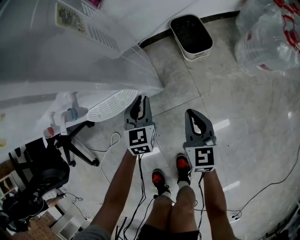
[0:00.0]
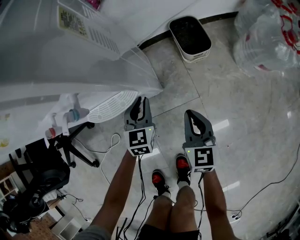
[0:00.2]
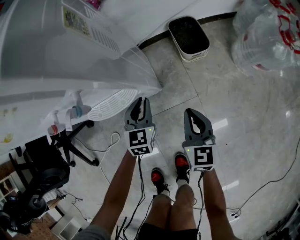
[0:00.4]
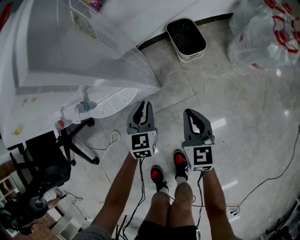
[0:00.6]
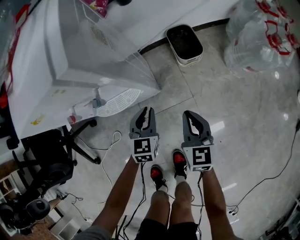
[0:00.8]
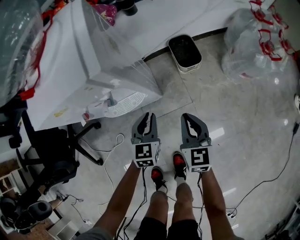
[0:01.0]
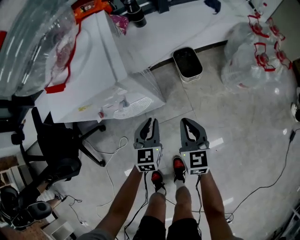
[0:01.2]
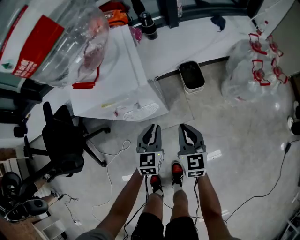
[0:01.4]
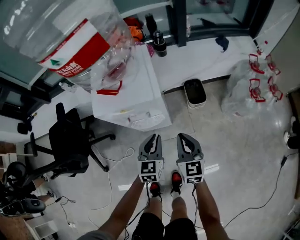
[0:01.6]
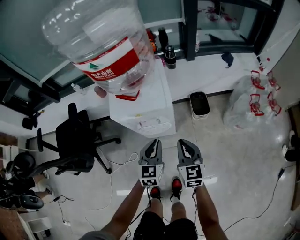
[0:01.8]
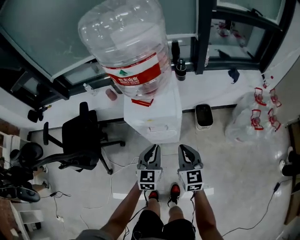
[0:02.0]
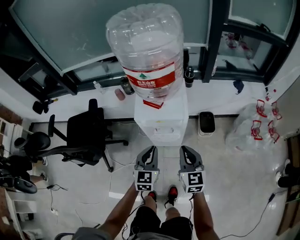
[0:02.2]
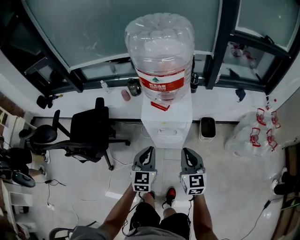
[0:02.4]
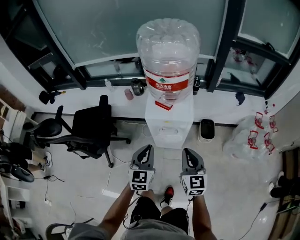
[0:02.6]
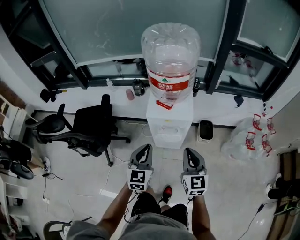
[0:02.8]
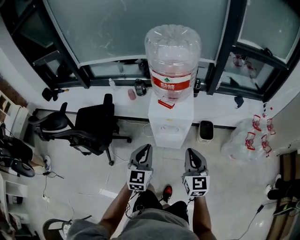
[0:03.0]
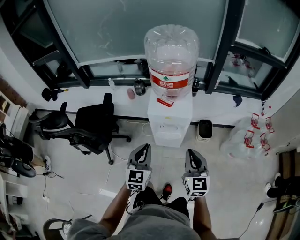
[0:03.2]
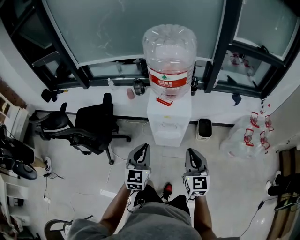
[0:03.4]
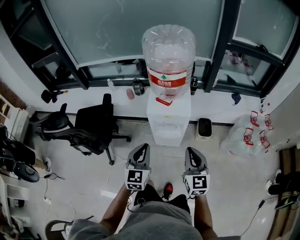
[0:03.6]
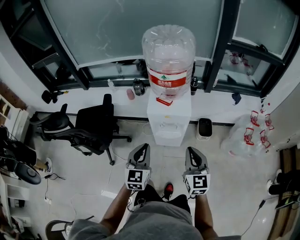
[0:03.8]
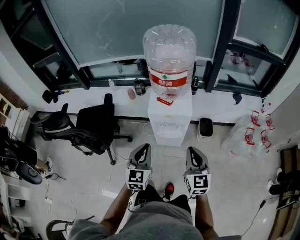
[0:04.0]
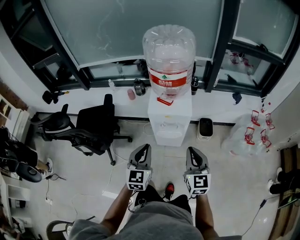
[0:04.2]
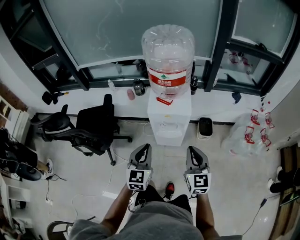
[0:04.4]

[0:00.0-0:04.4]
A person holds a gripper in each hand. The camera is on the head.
0:00.0 to 0:01.4: The two grippers go about 25 cm upward.
0:01.4 to 0:03.0: The right gripper heads upward, covering roughly 35 cm, and changes its angle by approximately 20 degrees. The left gripper shifts approximately 40 cm upward and to the left, and turns by some 20 degrees.
0:03.0 to 0:04.4: The grippers make only small movements.

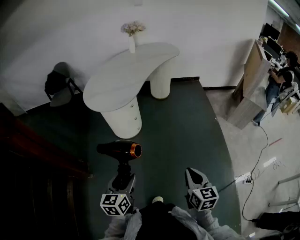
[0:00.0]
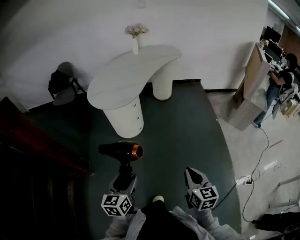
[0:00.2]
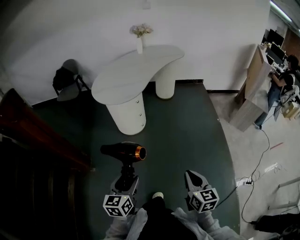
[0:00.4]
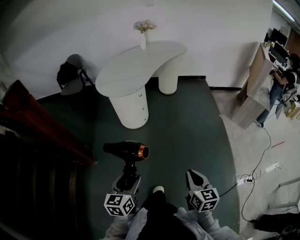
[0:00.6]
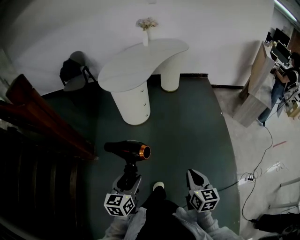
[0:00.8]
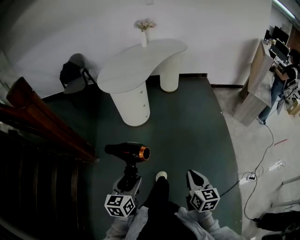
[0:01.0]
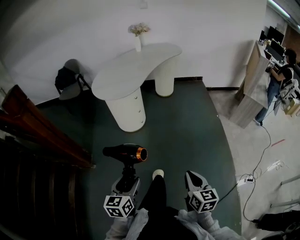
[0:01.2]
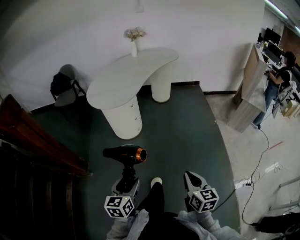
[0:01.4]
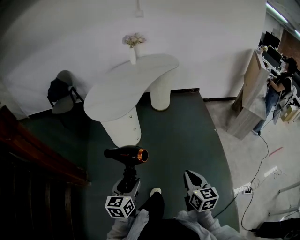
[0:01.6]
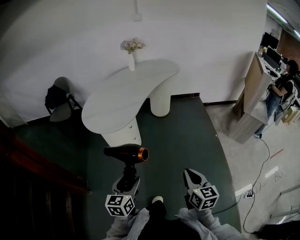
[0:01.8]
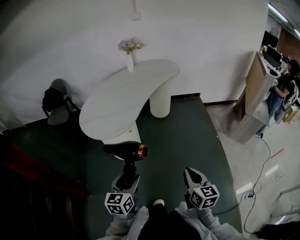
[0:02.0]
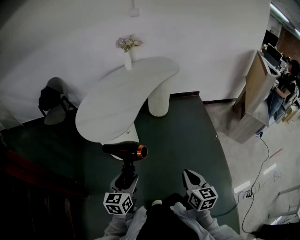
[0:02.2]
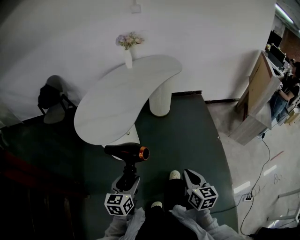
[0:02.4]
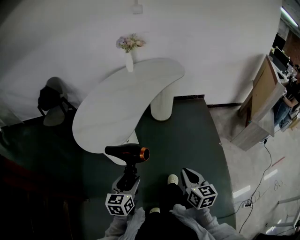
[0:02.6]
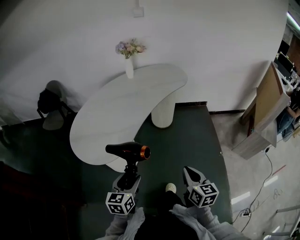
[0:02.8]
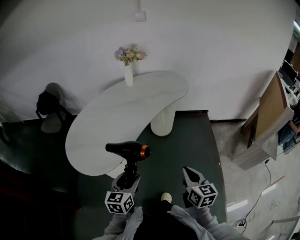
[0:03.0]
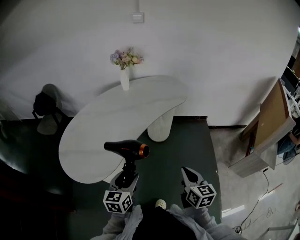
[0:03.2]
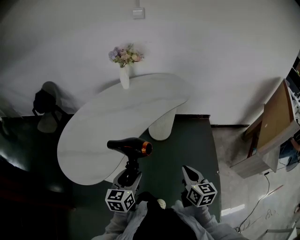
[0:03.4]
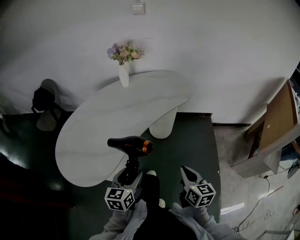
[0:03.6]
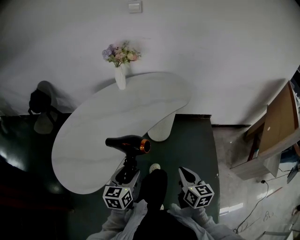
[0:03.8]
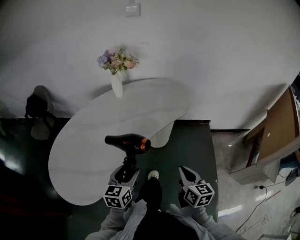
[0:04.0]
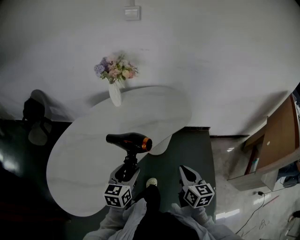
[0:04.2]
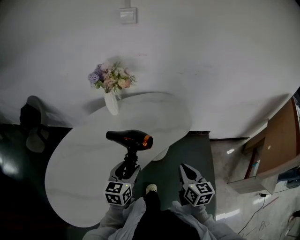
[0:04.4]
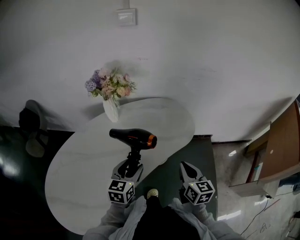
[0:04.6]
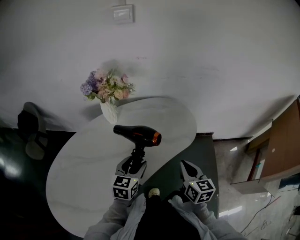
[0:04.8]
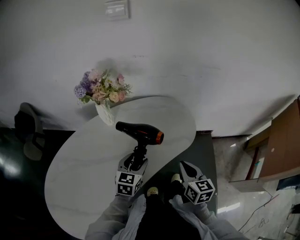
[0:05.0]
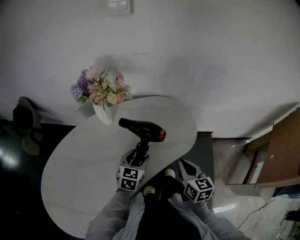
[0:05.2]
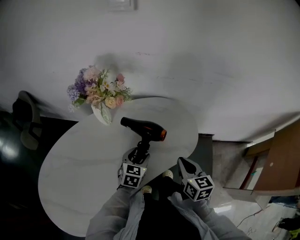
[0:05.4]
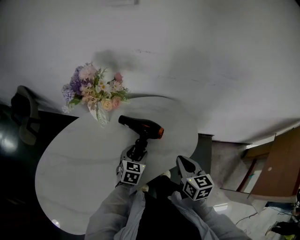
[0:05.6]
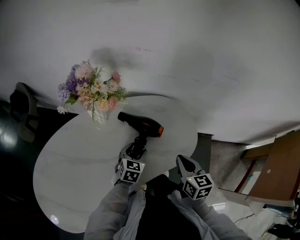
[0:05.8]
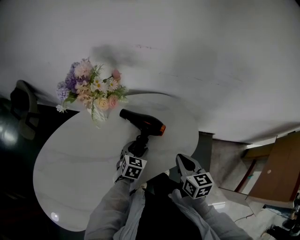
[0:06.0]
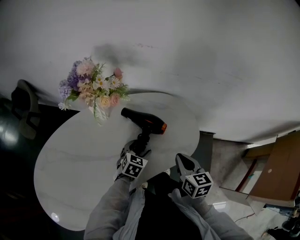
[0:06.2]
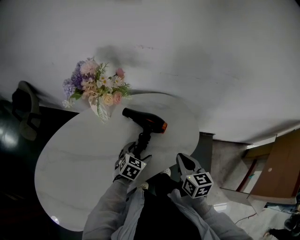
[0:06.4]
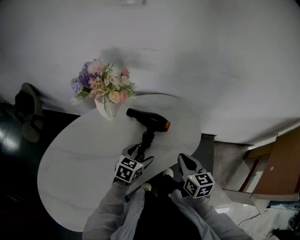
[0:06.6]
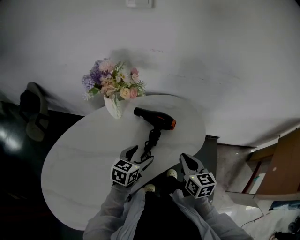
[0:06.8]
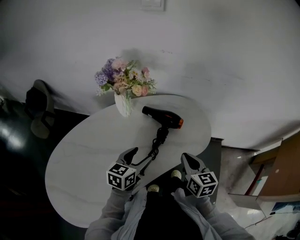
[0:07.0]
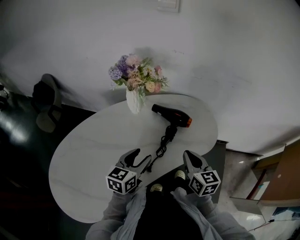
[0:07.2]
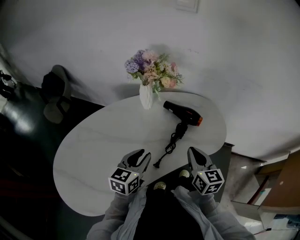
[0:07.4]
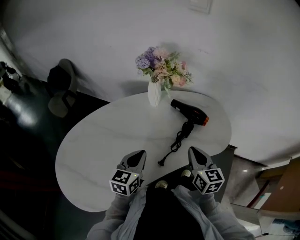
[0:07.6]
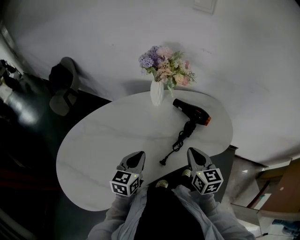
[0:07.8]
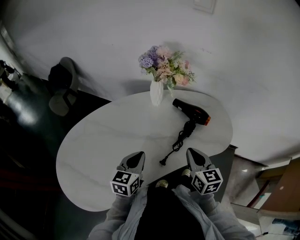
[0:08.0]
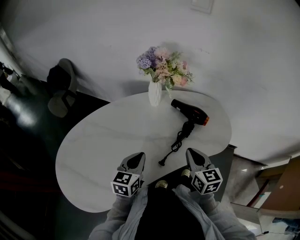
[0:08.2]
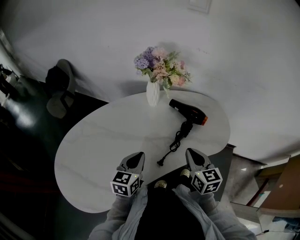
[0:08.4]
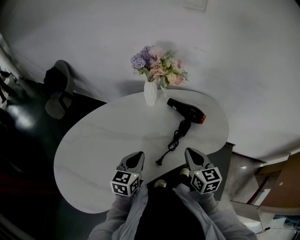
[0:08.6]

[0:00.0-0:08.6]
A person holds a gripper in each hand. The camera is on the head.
0:00.0 to 0:01.4: The two grippers go some 10 cm backward.
0:01.4 to 0:02.8: Both grippers are carried forward, some 50 cm.
0:02.8 to 0:04.4: The two grippers travel together, forward, about 50 cm.
0:04.4 to 0:05.8: The left gripper travels forward and downward by roughly 30 cm, and rotates approximately 20 degrees. The right gripper moves forward, approximately 25 cm.
0:05.8 to 0:07.2: The right gripper goes about 10 cm to the left and backward, while the left gripper is displaced backward, upward and to the left by roughly 20 cm, rotates roughly 30 degrees, and opens and closes again.
0:07.2 to 0:08.6: Both grippers travel together to the left, about 5 cm. The left gripper closes its fingers.

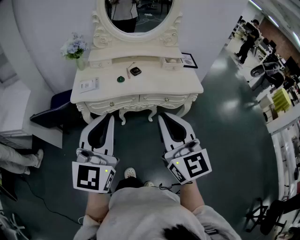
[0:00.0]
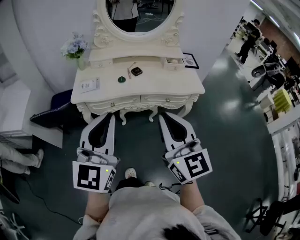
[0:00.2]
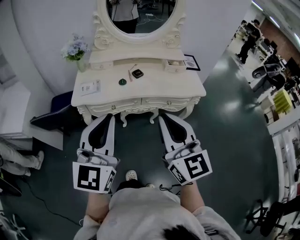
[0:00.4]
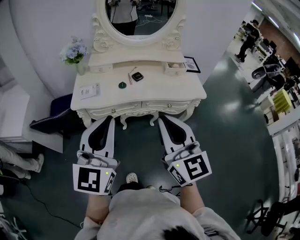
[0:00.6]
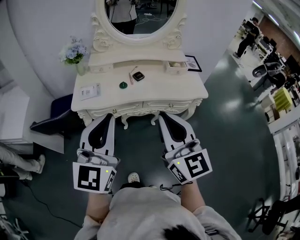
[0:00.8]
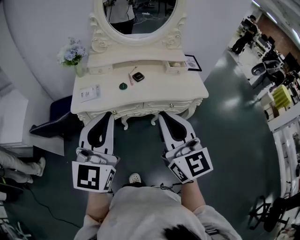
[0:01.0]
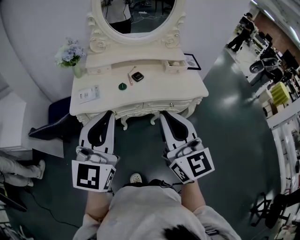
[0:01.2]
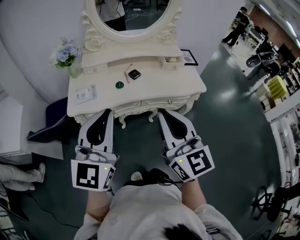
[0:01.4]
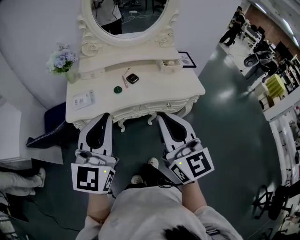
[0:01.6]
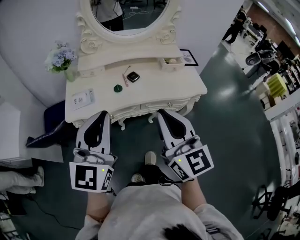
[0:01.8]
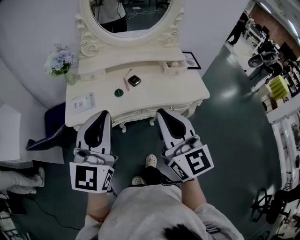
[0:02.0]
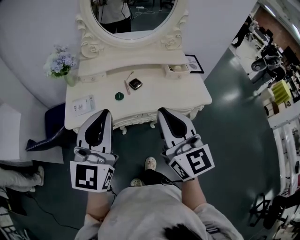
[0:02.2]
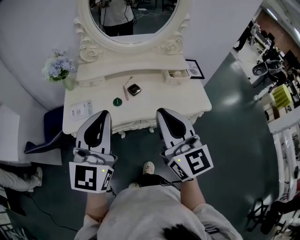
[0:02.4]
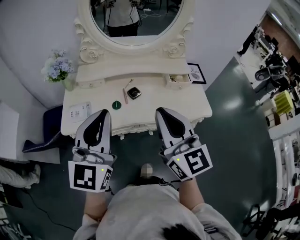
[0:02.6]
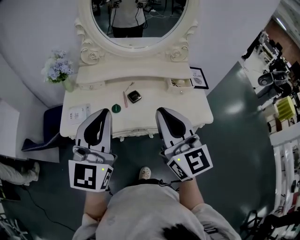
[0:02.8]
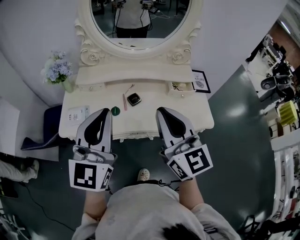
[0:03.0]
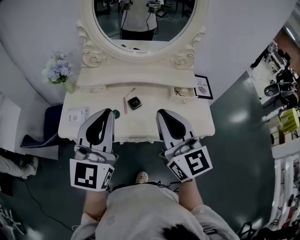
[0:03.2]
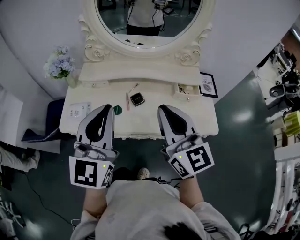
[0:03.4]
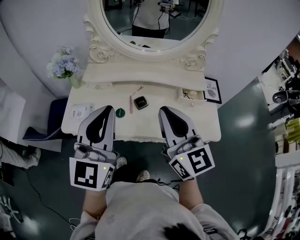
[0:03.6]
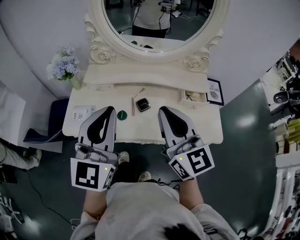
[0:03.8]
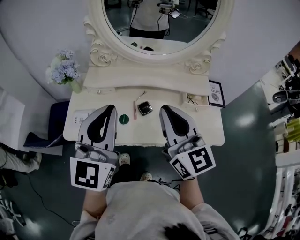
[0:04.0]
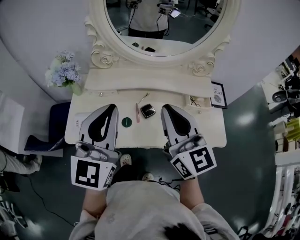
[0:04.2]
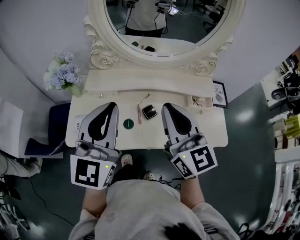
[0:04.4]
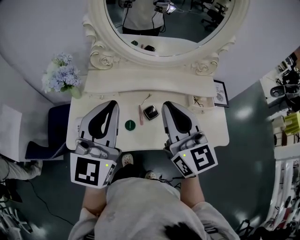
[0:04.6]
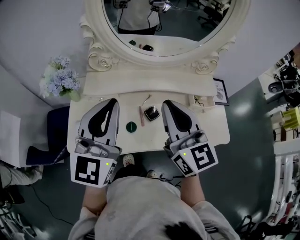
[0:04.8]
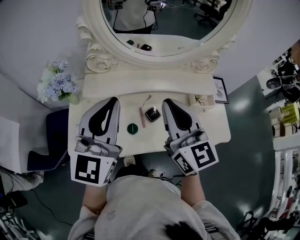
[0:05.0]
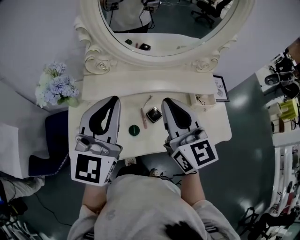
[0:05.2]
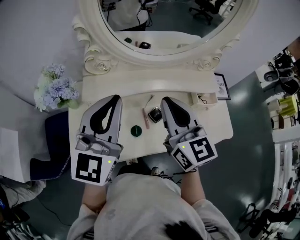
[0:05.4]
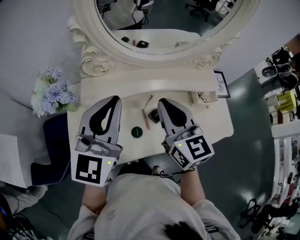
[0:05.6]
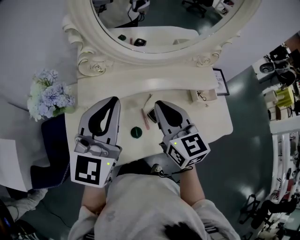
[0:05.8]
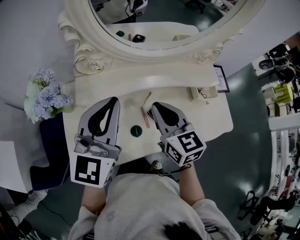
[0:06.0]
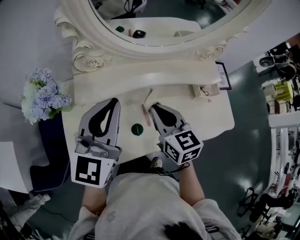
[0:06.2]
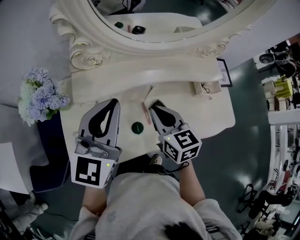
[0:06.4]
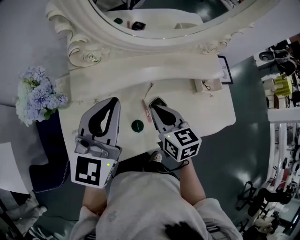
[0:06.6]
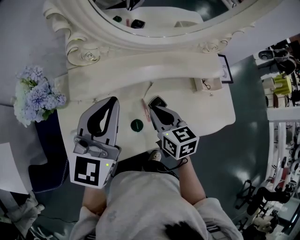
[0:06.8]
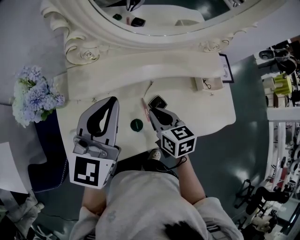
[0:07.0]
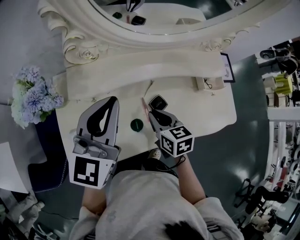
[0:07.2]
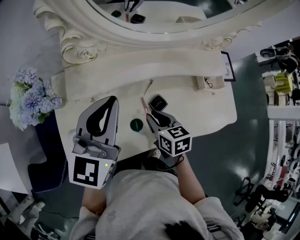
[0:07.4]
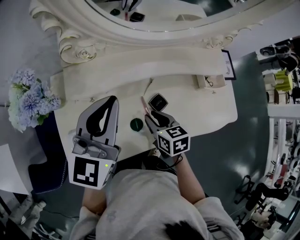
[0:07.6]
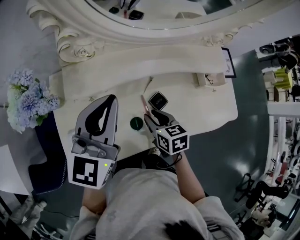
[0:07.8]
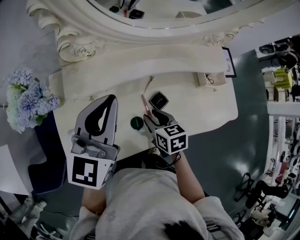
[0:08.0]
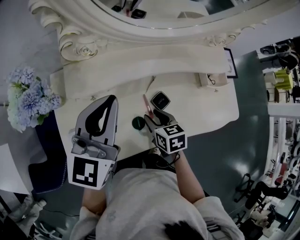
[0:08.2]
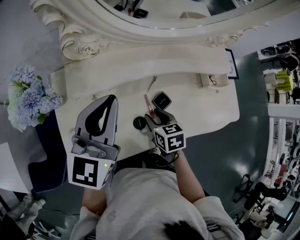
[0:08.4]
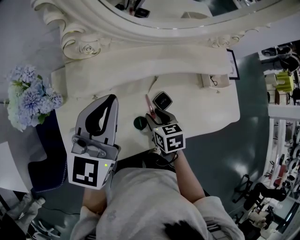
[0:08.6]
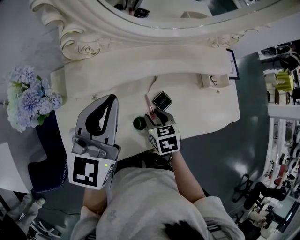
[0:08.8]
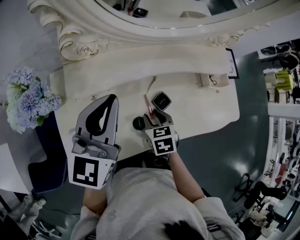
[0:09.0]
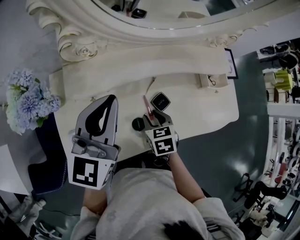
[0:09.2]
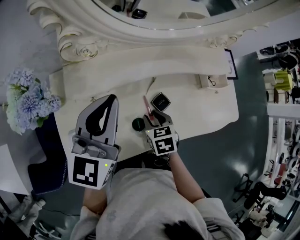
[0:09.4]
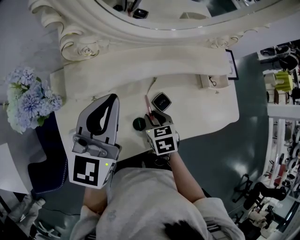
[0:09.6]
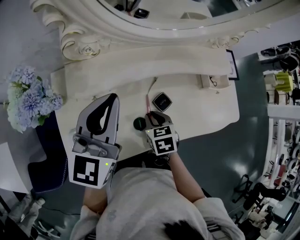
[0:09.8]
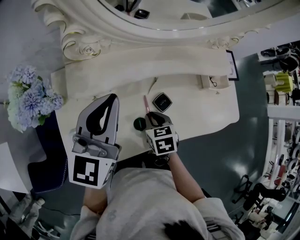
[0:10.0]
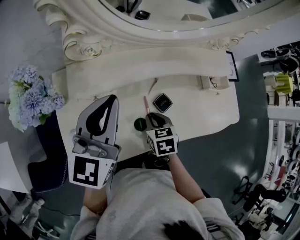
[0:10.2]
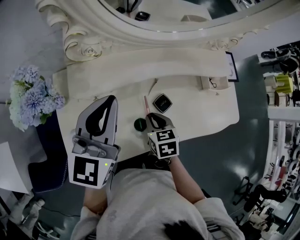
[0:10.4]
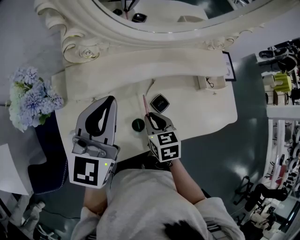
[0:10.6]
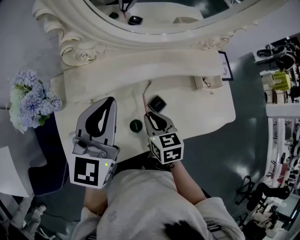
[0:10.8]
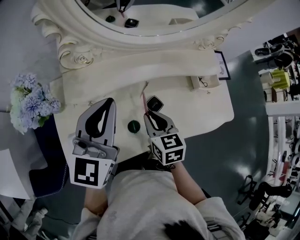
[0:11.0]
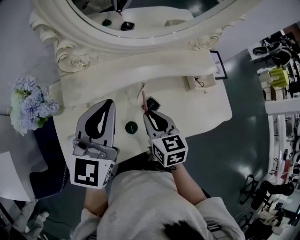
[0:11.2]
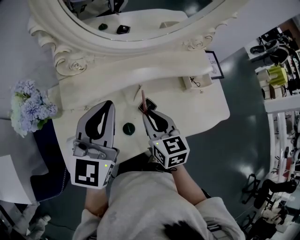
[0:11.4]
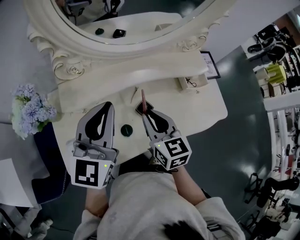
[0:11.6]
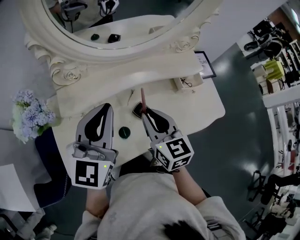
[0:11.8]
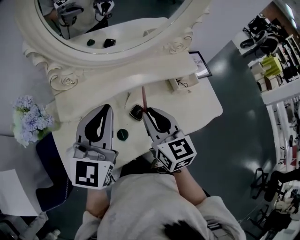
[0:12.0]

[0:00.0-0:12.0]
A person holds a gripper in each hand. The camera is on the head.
0:00.0 to 0:01.6: Both grippers travel together forward, approximately 10 cm.
0:01.6 to 0:03.0: The two grippers go about 20 cm forward.
0:03.0 to 0:04.4: The grippers both shift forward by roughly 15 cm.
0:04.4 to 0:06.0: The left gripper travels forward, downward and to the left by approximately 15 cm. Meanwhile the right gripper is displaced downward, forward and to the left by roughly 15 cm, and swivels some 20 degrees.
0:06.0 to 0:07.6: The right gripper goes approximately 20 cm downward, turns by approximately 30 degrees, and opens. The left gripper heads downward, covering about 5 cm.
0:07.6 to 0:09.0: The grippers make only small movements.
0:09.0 to 0:10.4: The right gripper closes up.
0:10.4 to 0:12.0: The left gripper moves to the right and upward, approximately 10 cm; the right gripper shifts approximately 20 cm upward, and points its fingers approximately 40 degrees further upward.
